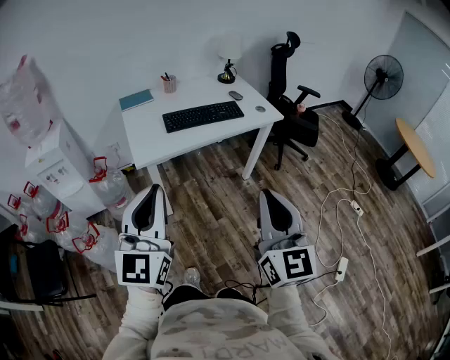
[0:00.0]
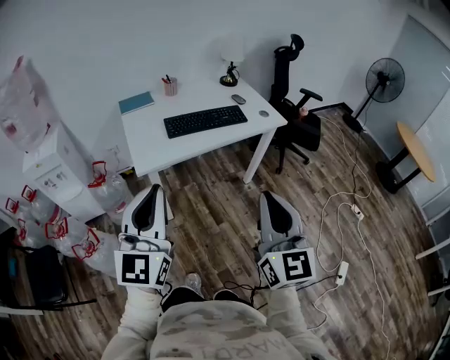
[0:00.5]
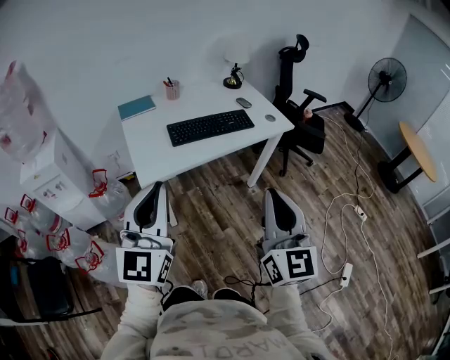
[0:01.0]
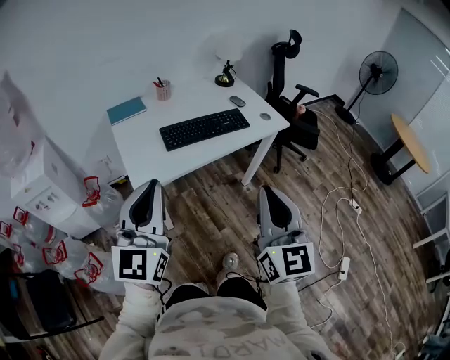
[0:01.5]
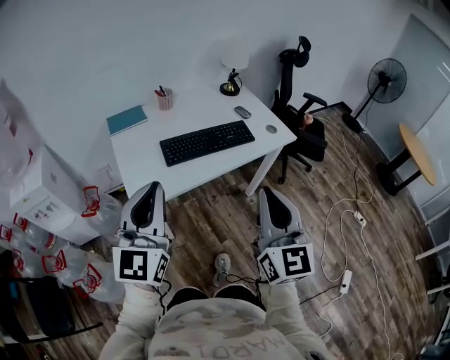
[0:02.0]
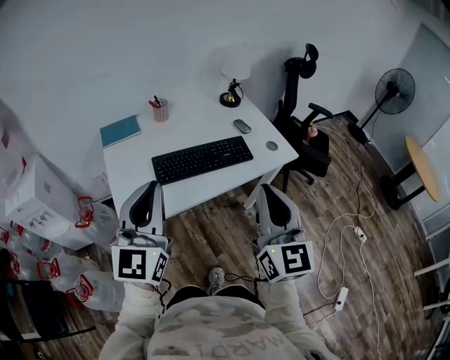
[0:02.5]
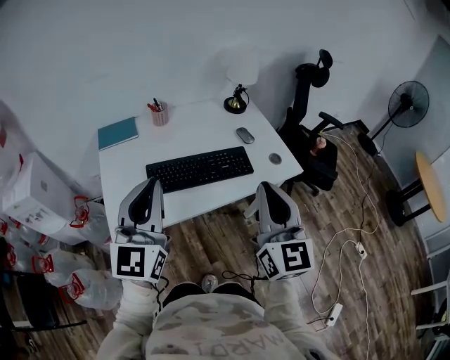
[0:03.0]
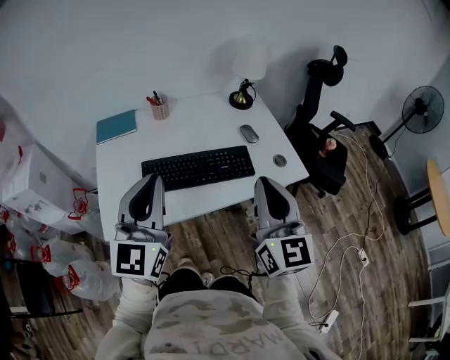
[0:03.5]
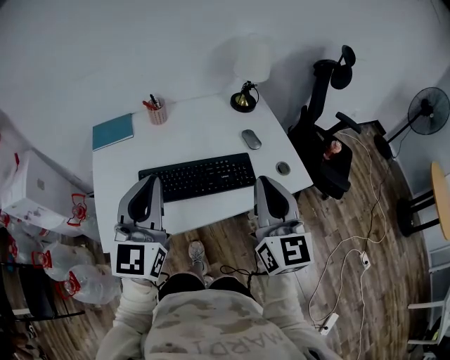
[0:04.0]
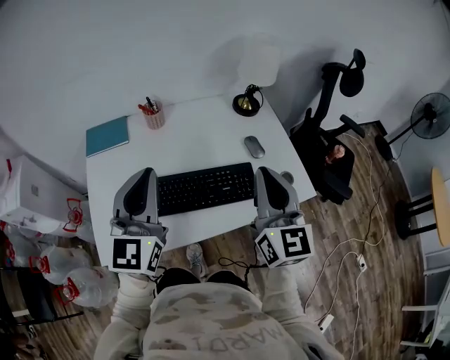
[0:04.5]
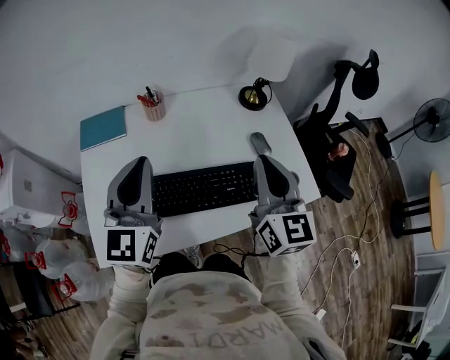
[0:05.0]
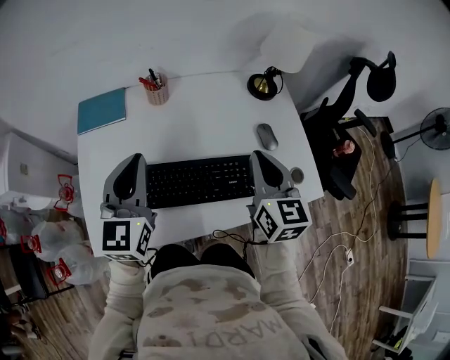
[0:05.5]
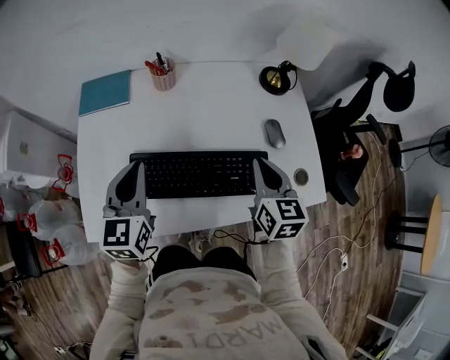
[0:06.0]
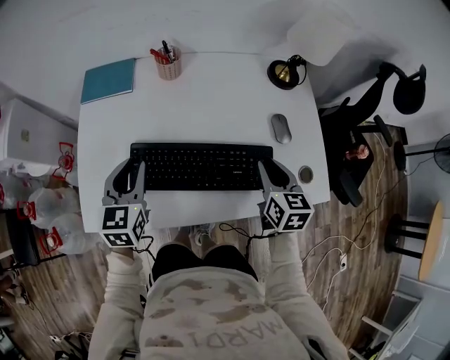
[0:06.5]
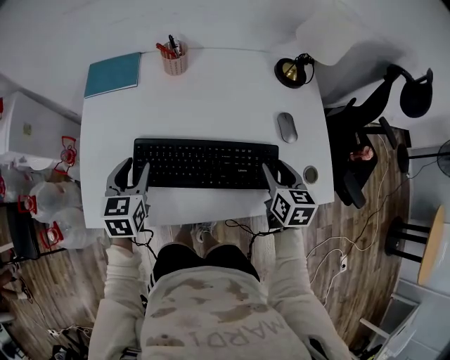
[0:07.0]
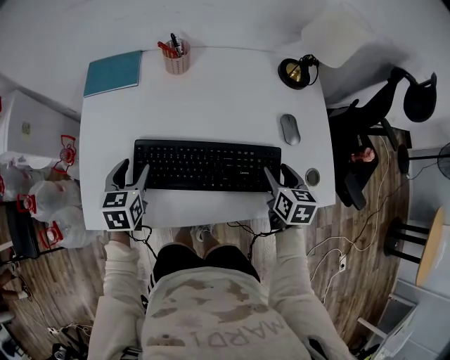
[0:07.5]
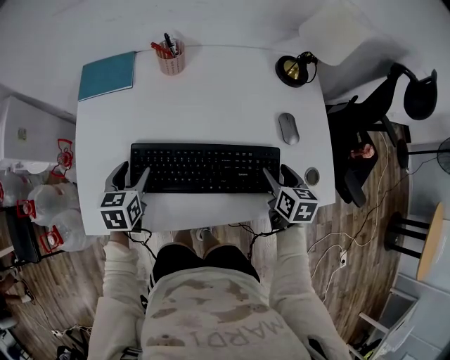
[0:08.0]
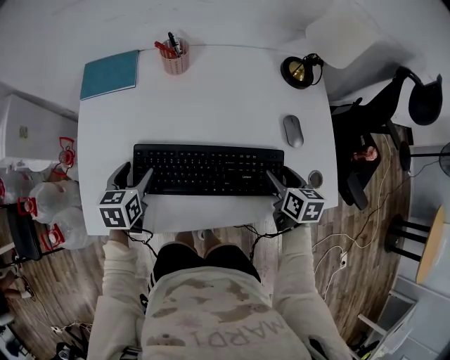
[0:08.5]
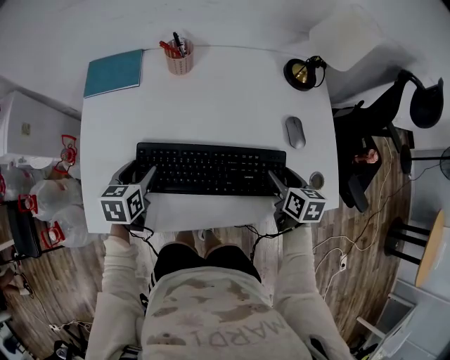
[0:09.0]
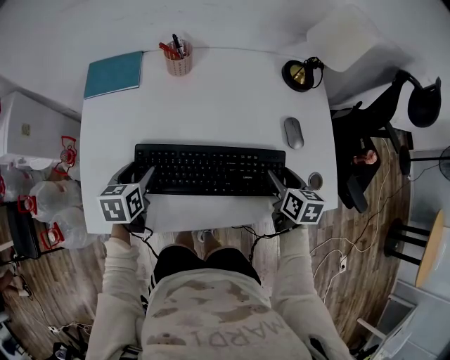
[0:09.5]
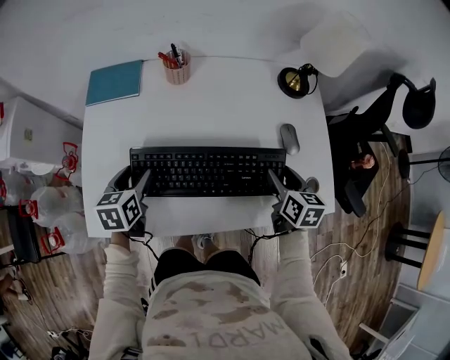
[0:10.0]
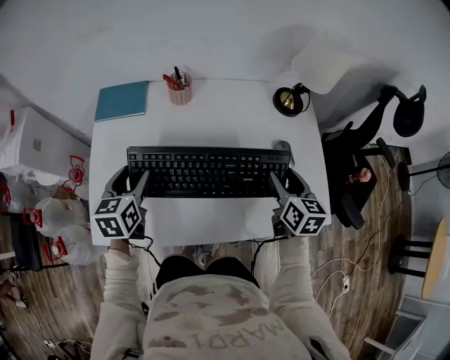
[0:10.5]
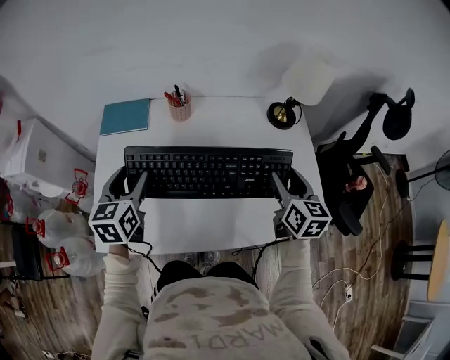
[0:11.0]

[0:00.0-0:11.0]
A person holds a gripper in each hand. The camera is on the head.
0:00.0 to 0:02.0: The two grippers go roughly 25 cm forward.
0:02.0 to 0:03.5: Both grippers travel together forward and to the right, roughly 25 cm.
0:03.5 to 0:05.5: Both grippers travel together forward and downward, about 25 cm. The right gripper turns by roughly 20 degrees.
0:05.5 to 0:07.5: The two grippers go roughly 20 cm downward. The right gripper rotates roughly 30 degrees, and opens its fingers, while the left gripper points its fingers roughly 30 degrees further downward, and opens its fingers.
0:07.5 to 0:09.0: The grippers stay close to where they were, moving slightly.
0:09.0 to 0:11.0: Both grippers move upward, approximately 20 cm. The right gripper changes its angle by some 30 degrees, while the left gripper rotates approximately 20 degrees.

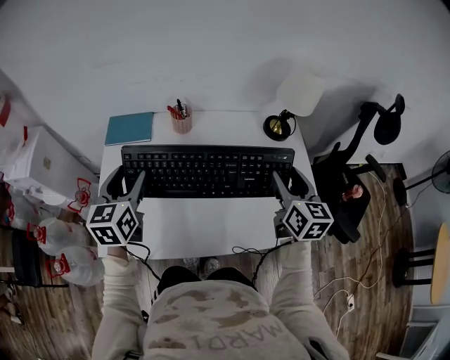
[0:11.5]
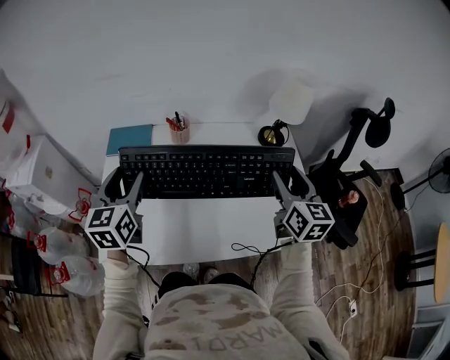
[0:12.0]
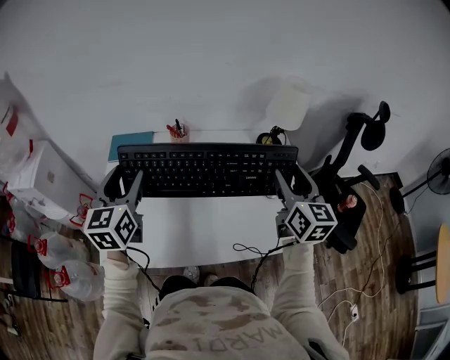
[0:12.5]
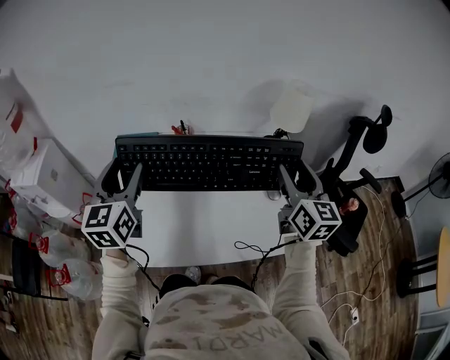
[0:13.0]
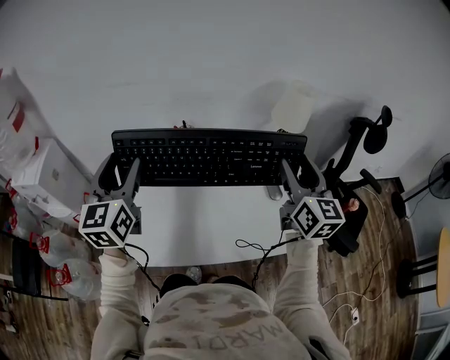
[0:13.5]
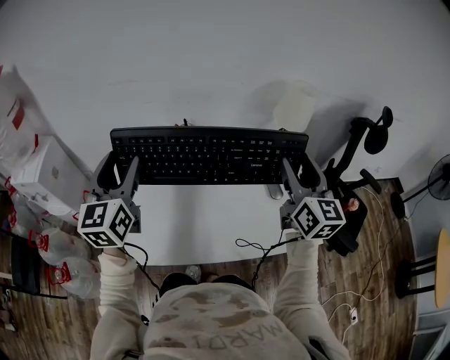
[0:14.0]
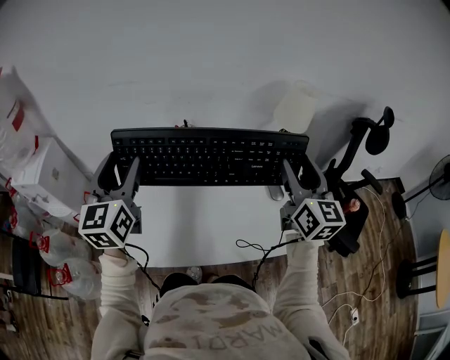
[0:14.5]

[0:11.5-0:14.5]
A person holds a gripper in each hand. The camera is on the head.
0:11.5 to 0:13.0: Both grippers move upward, some 10 cm.
0:13.0 to 0:14.5: The grippers stay close to where they were, moving slightly.

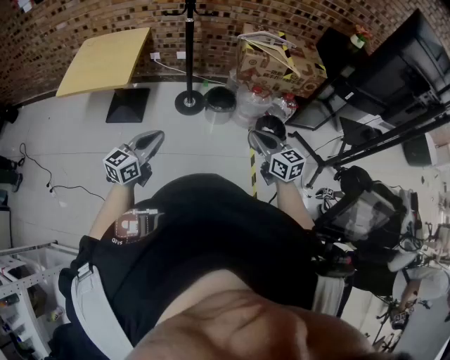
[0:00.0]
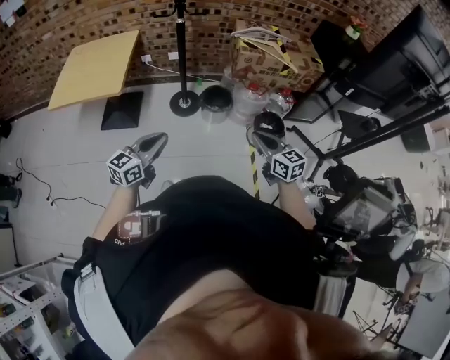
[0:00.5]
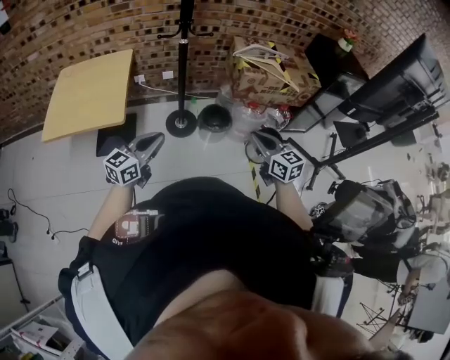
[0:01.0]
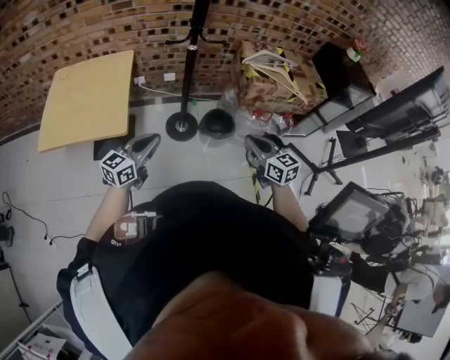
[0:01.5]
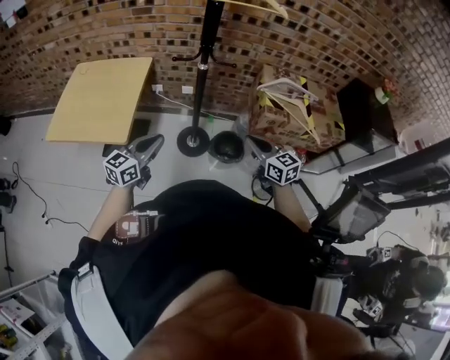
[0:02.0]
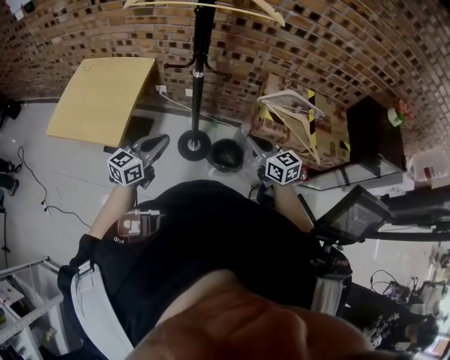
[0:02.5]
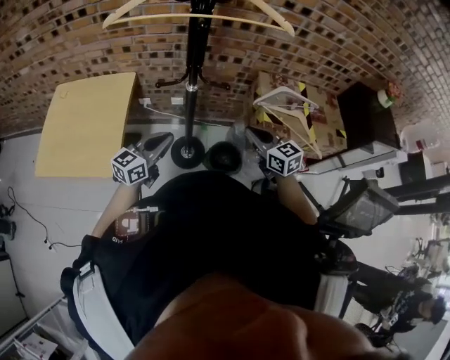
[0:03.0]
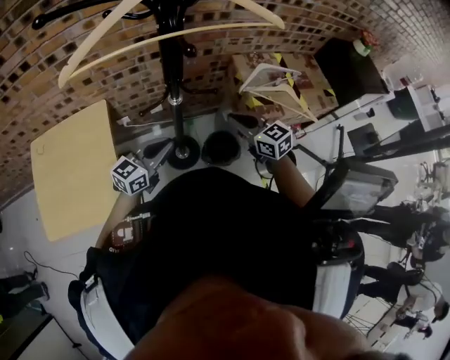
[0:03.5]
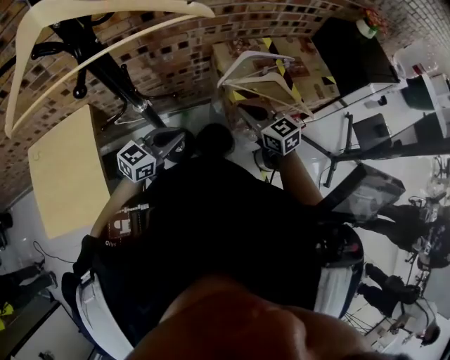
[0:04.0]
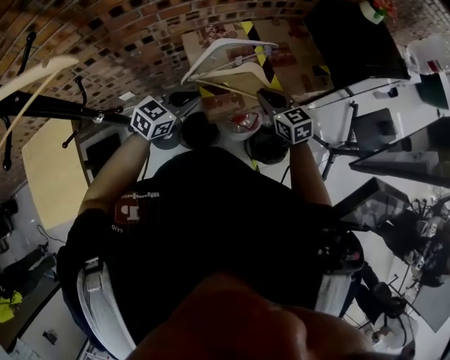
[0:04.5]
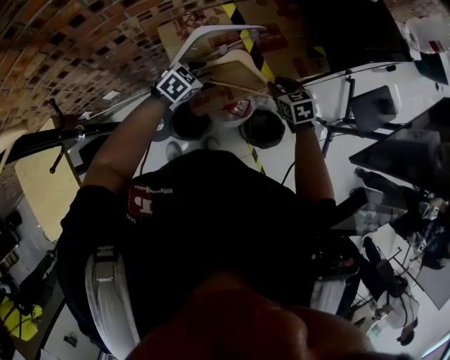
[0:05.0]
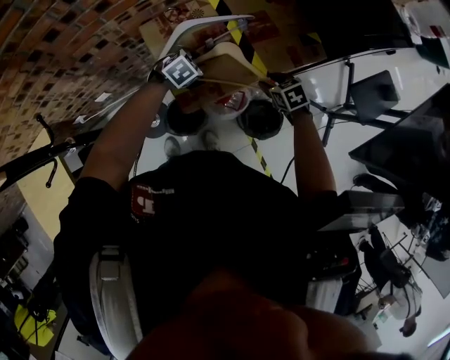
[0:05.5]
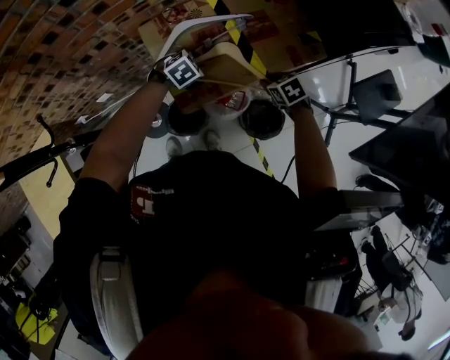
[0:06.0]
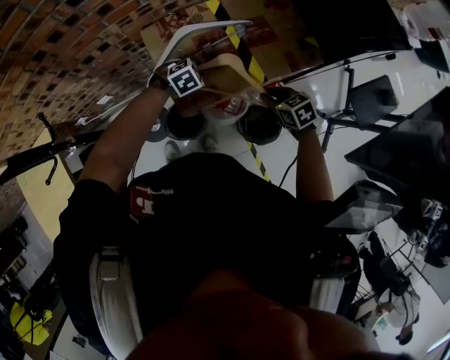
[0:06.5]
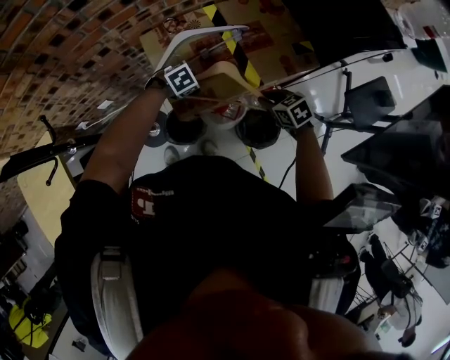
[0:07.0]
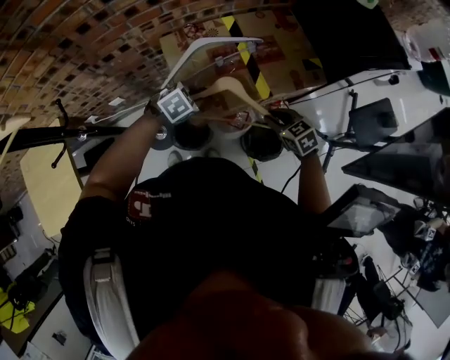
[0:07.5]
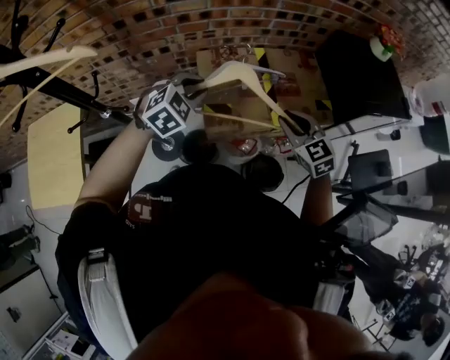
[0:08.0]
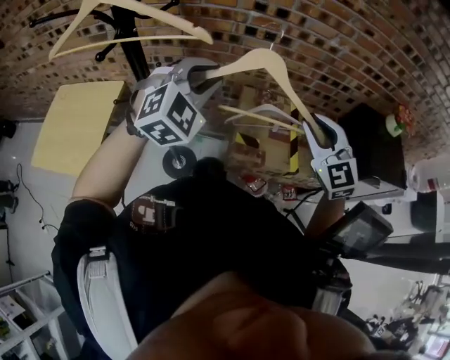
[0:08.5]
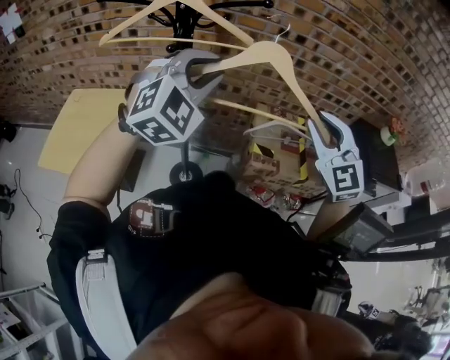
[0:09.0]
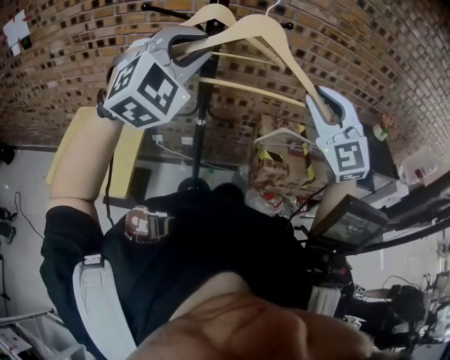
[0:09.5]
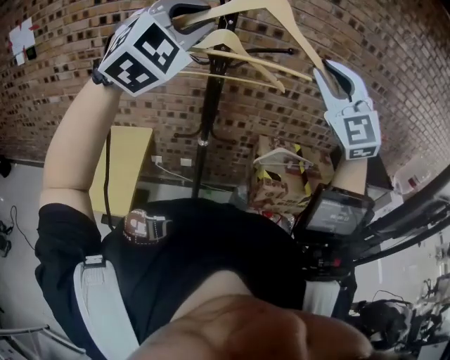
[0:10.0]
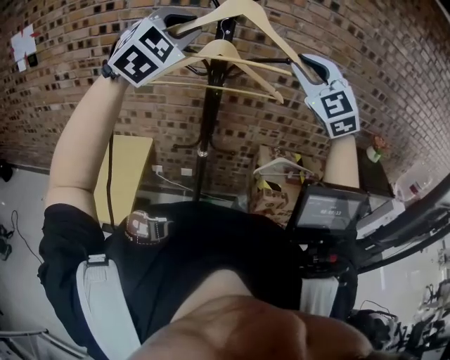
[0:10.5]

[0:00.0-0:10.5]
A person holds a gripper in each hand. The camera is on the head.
0:00.0 to 0:02.0: Both grippers move forward, roughly 35 cm.
0:02.0 to 0:04.0: The right gripper ends up roughly 25 cm from where it was. The left gripper ends up roughly 35 cm from where it was, and changes its angle by some 40 degrees.
0:04.0 to 0:06.5: The right gripper goes approximately 35 cm to the right, downward and forward, tilts its fingers some 30 degrees downward, and opens its fingers. The left gripper goes roughly 50 cm forward, to the right and downward, points its fingers some 50 degrees further downward, and opens up.
0:06.5 to 0:08.5: The grippers both shift upward by roughly 50 cm. The left gripper tips its fingers upward by approximately 40 degrees. The right gripper angles its fingers upward, by some 40 degrees.
0:08.5 to 0:10.5: The grippers both shift to the left and upward by roughly 40 cm. The left gripper rotates about 20 degrees; the right gripper changes its angle by some 30 degrees.

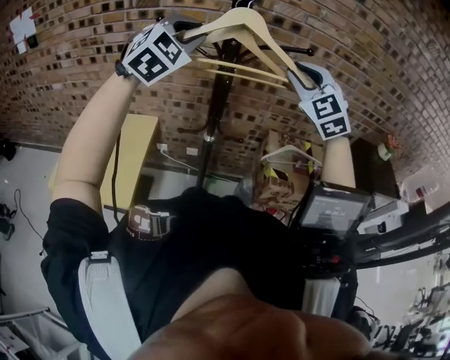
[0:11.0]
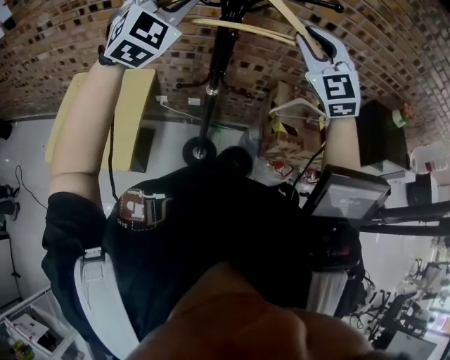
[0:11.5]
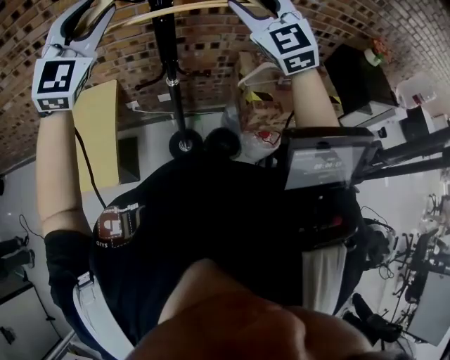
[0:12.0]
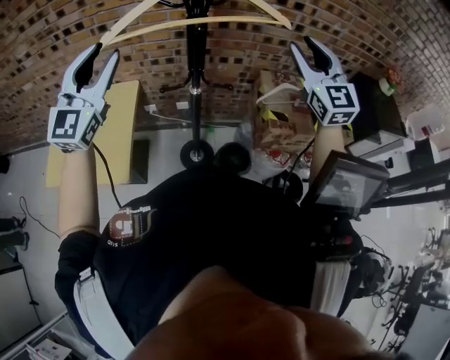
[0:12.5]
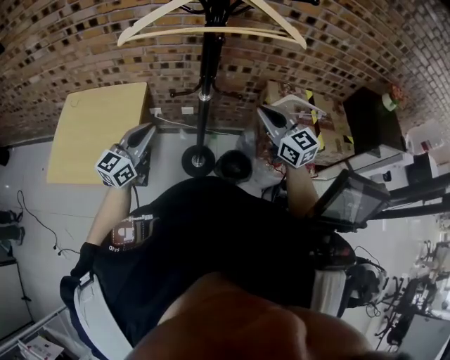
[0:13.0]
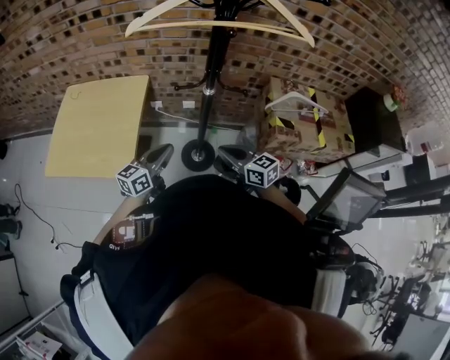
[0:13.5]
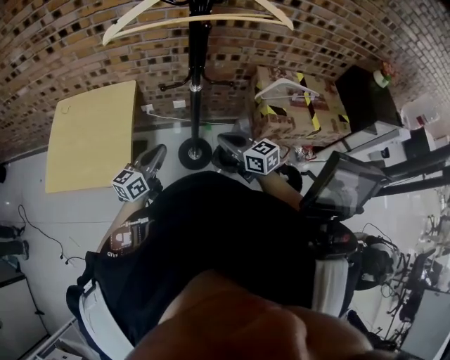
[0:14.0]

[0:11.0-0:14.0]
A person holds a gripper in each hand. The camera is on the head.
0:11.0 to 0:12.5: The right gripper shifts some 10 cm to the right and downward, and swivels roughly 30 degrees, while the left gripper goes about 15 cm to the left, downward and backward, and rotates some 40 degrees.
0:12.5 to 0:14.0: The right gripper is displaced downward and to the left by about 40 cm, changes its angle by roughly 60 degrees, and closes up. The left gripper goes approximately 35 cm downward, rolls counterclockwise, seen from behind, by approximately 60 degrees, and closes.
